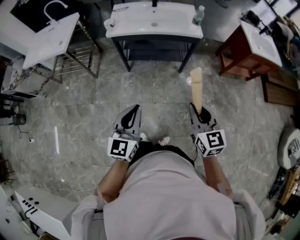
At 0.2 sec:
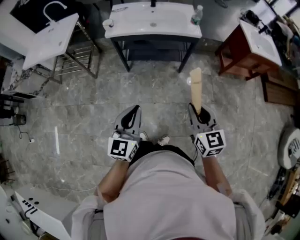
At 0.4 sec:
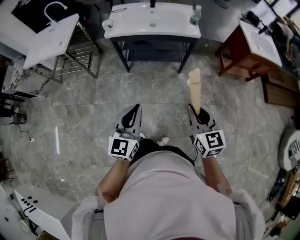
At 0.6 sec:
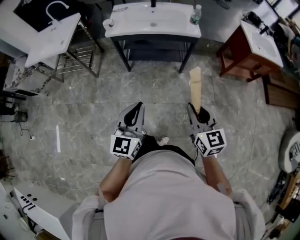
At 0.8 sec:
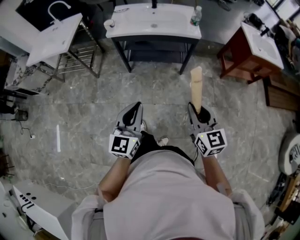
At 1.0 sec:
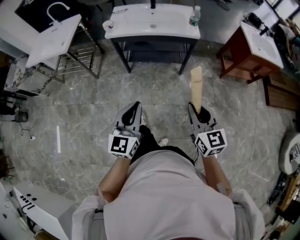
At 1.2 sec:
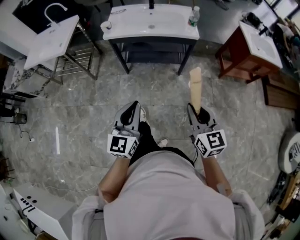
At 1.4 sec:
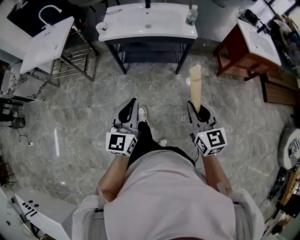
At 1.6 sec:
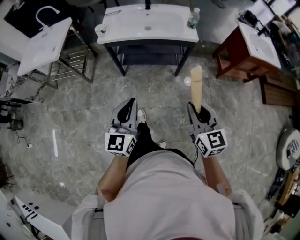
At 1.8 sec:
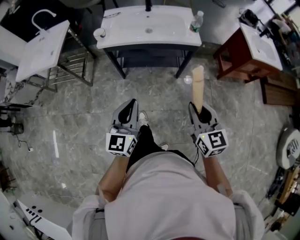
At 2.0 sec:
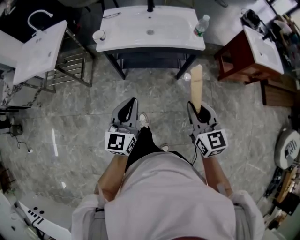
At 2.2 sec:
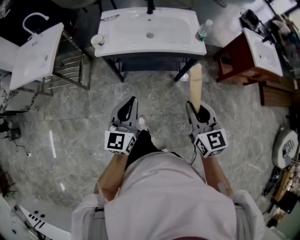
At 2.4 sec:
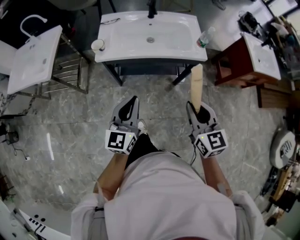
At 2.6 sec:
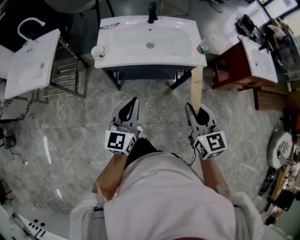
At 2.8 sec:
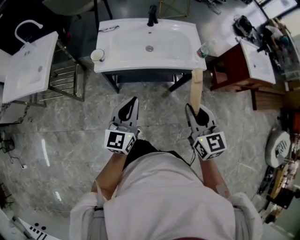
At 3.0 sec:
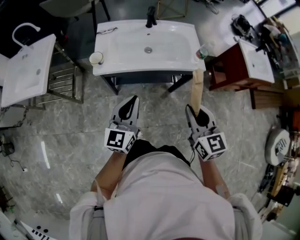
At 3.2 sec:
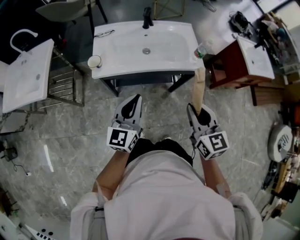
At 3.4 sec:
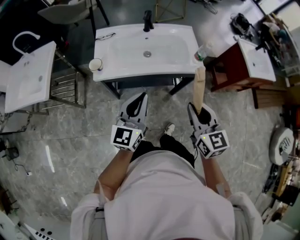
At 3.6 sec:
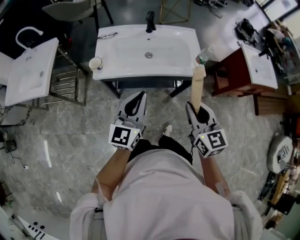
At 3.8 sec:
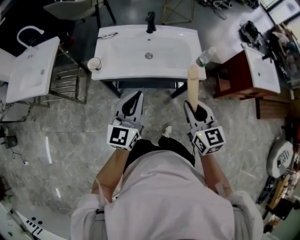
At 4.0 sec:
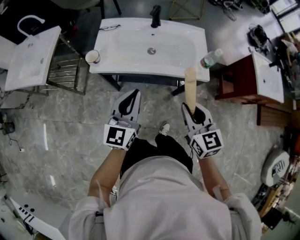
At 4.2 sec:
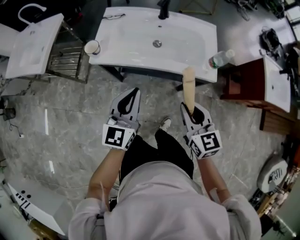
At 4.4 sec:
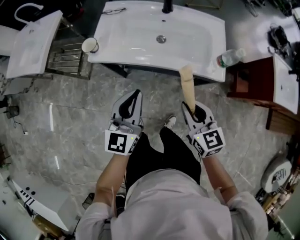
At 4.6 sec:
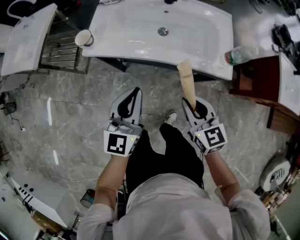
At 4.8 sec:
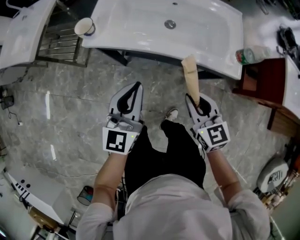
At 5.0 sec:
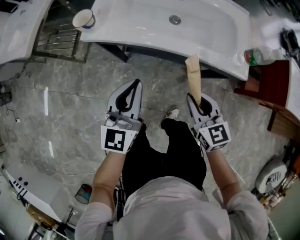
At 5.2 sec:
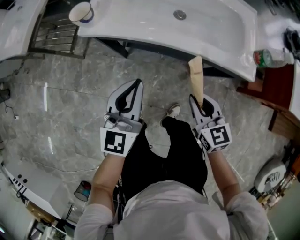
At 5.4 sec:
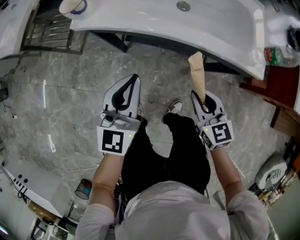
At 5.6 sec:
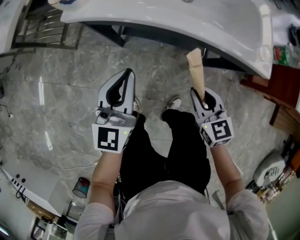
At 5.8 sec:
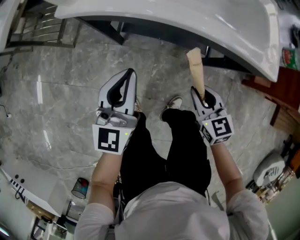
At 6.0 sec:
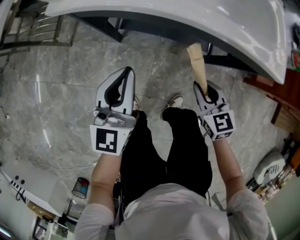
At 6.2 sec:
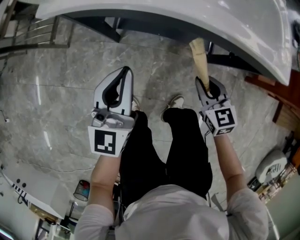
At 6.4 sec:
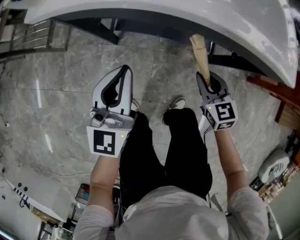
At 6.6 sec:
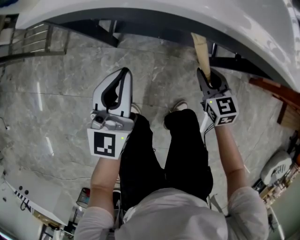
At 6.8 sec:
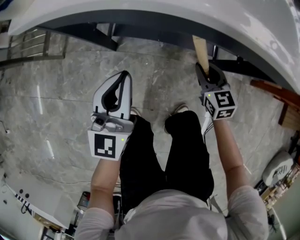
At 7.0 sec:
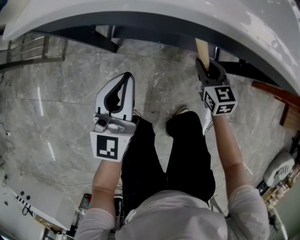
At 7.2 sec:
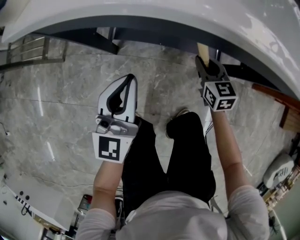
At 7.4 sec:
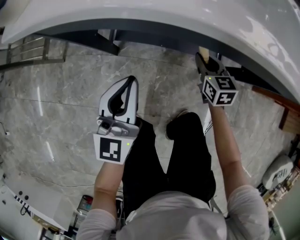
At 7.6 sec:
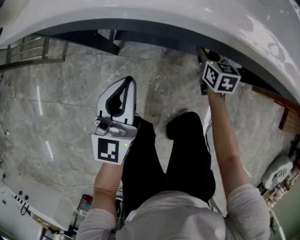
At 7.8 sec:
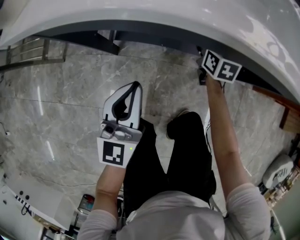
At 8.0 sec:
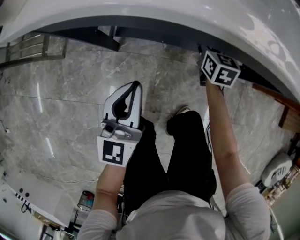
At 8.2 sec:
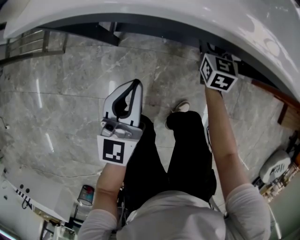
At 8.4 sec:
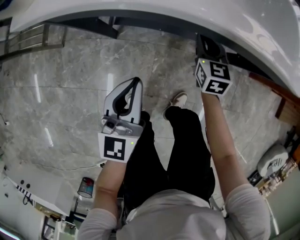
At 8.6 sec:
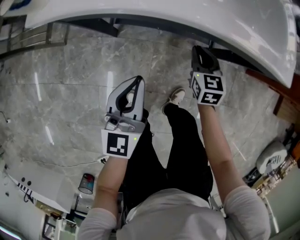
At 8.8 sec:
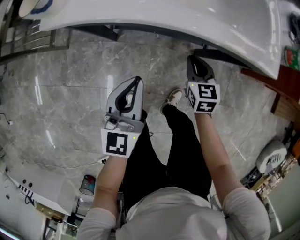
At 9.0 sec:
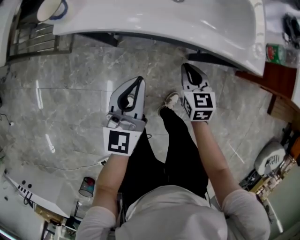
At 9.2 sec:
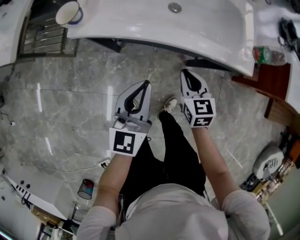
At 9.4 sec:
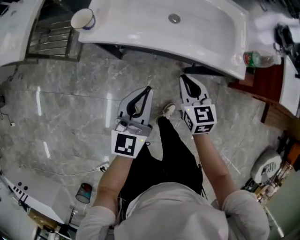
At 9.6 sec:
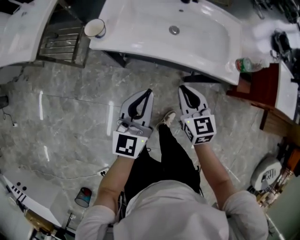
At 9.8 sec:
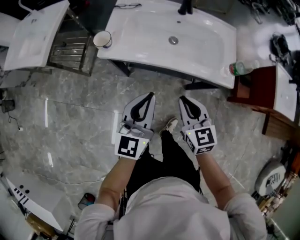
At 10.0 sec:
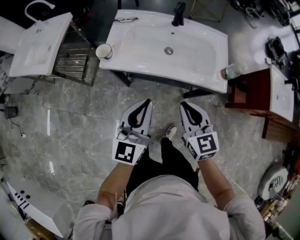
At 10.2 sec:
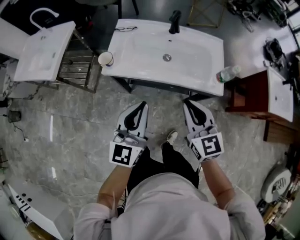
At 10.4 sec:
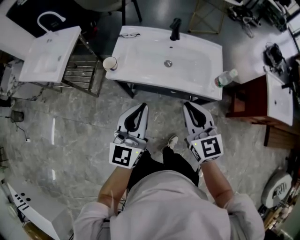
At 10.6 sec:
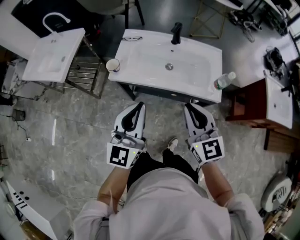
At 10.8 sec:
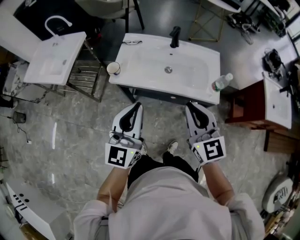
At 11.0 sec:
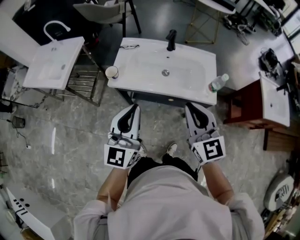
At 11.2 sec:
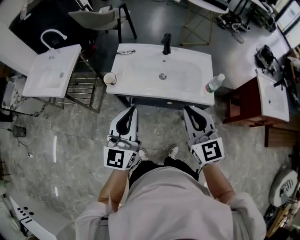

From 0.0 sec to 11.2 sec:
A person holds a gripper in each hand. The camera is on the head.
From 0.0 sec to 1.6 sec: Both grippers travel together forward, some 5 cm.
From 1.6 sec to 3.2 sec: Both grippers move forward, some 25 cm.
From 3.2 sec to 4.8 sec: The right gripper is displaced downward and forward by some 25 cm, and swivels about 30 degrees; the left gripper travels downward and forward by roughly 10 cm.
From 4.8 sec to 6.4 sec: The two grippers go approximately 25 cm downward.
From 6.4 sec to 8.0 sec: The left gripper is displaced downward by roughly 10 cm, while the right gripper goes roughly 20 cm forward and downward, changes its angle by roughly 20 degrees, and opens.
From 8.0 sec to 9.6 sec: The left gripper travels upward by about 30 cm. The right gripper goes approximately 40 cm upward and backward, and closes.
From 9.6 sec to 11.2 sec: Both grippers move upward, roughly 25 cm. The right gripper turns by about 30 degrees.

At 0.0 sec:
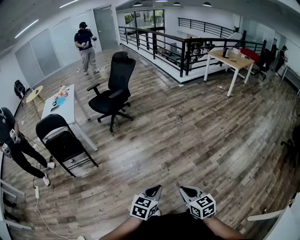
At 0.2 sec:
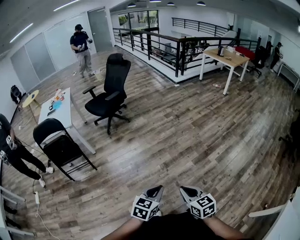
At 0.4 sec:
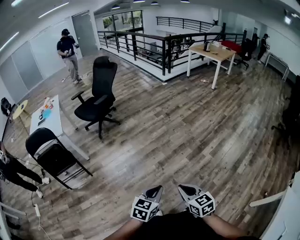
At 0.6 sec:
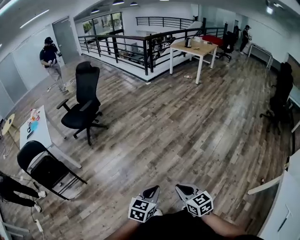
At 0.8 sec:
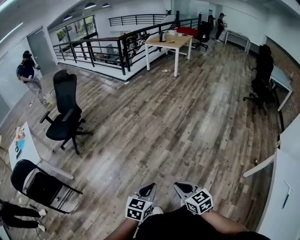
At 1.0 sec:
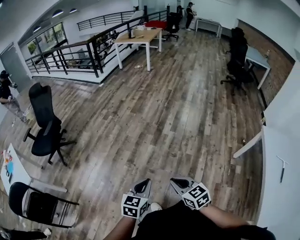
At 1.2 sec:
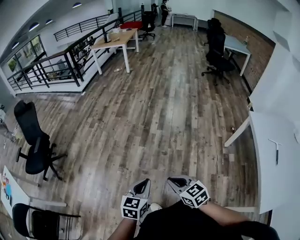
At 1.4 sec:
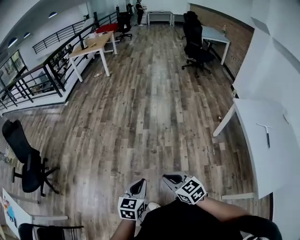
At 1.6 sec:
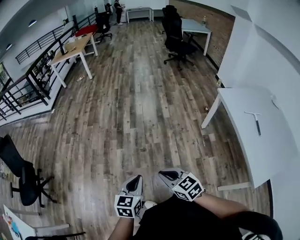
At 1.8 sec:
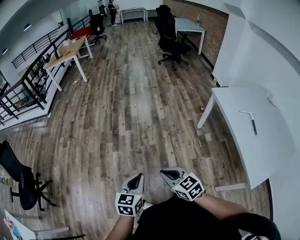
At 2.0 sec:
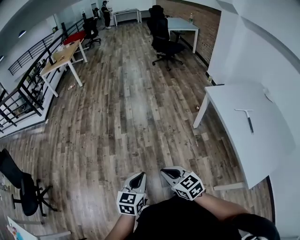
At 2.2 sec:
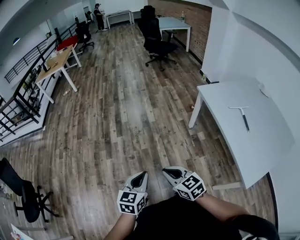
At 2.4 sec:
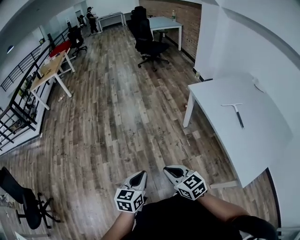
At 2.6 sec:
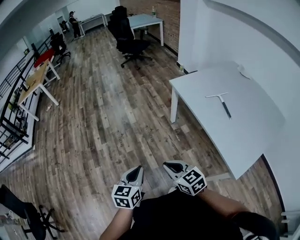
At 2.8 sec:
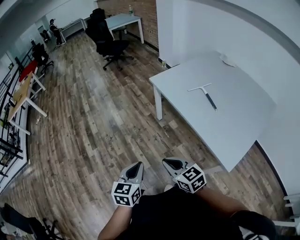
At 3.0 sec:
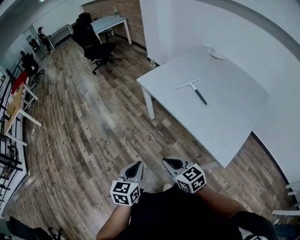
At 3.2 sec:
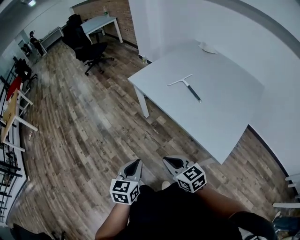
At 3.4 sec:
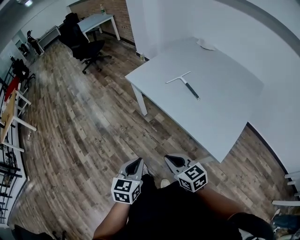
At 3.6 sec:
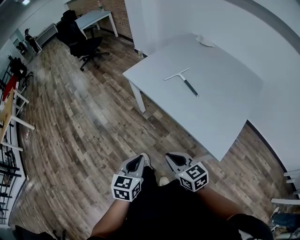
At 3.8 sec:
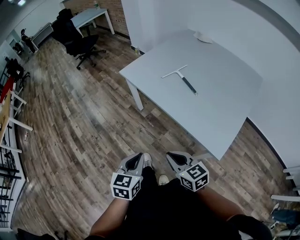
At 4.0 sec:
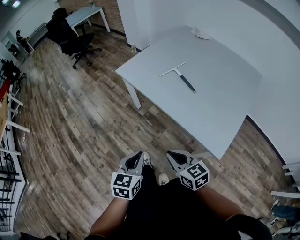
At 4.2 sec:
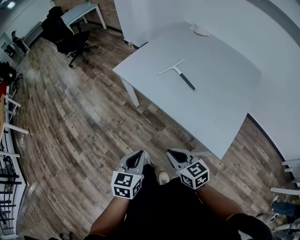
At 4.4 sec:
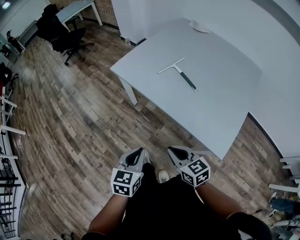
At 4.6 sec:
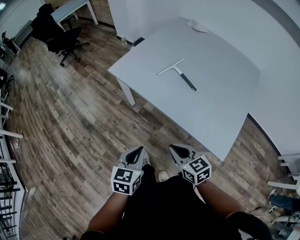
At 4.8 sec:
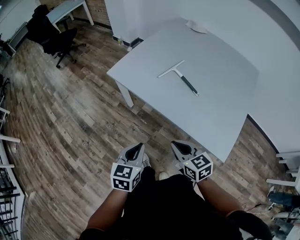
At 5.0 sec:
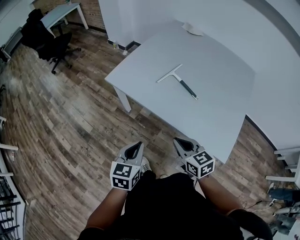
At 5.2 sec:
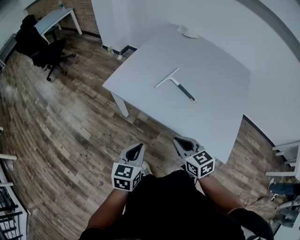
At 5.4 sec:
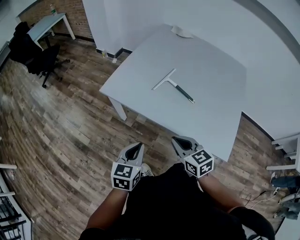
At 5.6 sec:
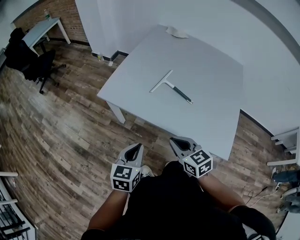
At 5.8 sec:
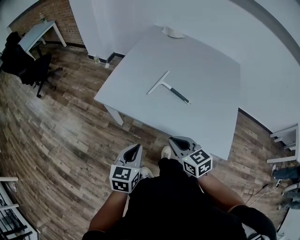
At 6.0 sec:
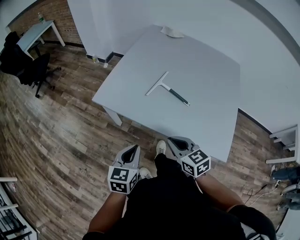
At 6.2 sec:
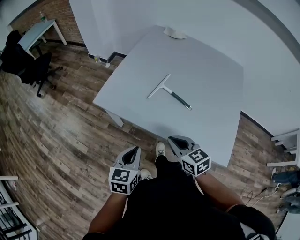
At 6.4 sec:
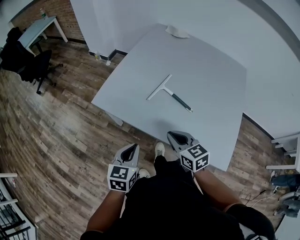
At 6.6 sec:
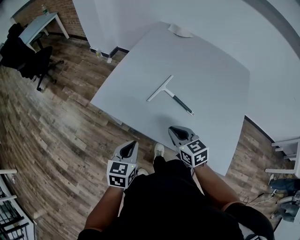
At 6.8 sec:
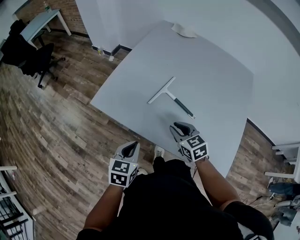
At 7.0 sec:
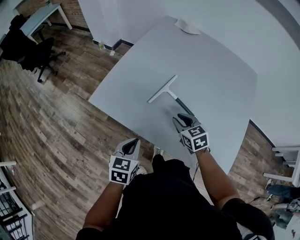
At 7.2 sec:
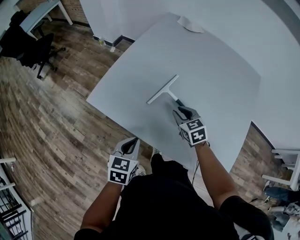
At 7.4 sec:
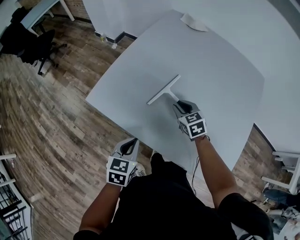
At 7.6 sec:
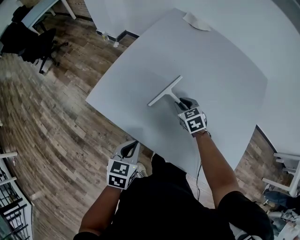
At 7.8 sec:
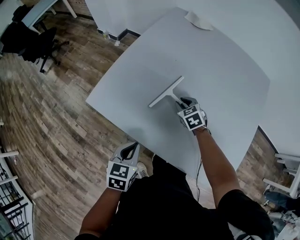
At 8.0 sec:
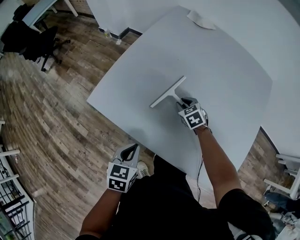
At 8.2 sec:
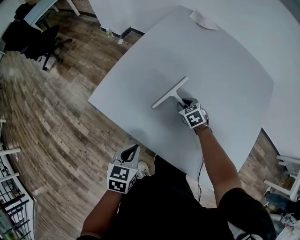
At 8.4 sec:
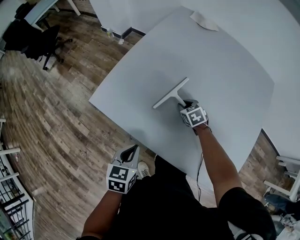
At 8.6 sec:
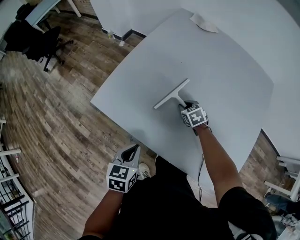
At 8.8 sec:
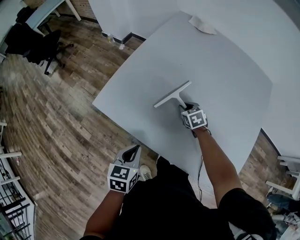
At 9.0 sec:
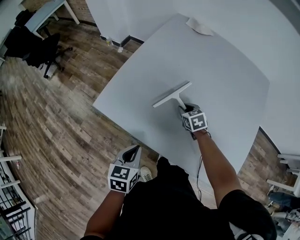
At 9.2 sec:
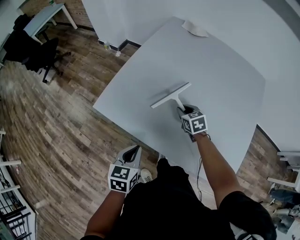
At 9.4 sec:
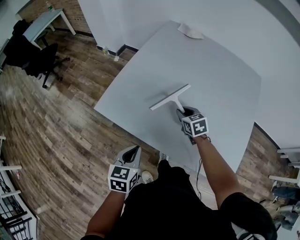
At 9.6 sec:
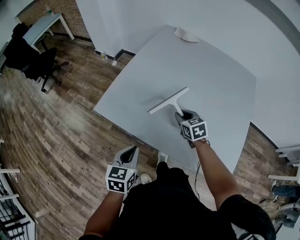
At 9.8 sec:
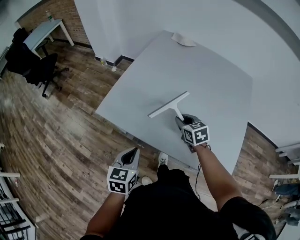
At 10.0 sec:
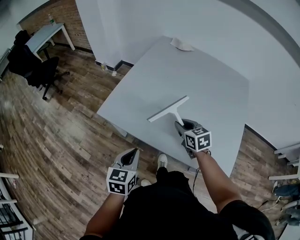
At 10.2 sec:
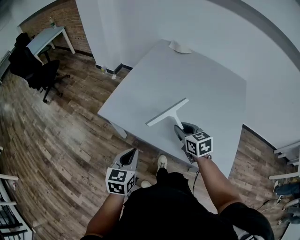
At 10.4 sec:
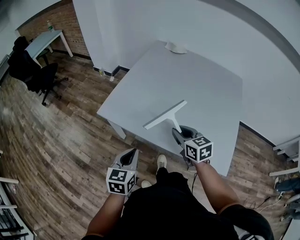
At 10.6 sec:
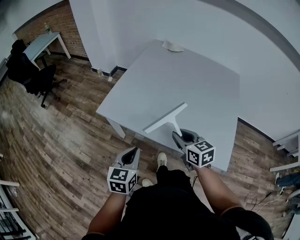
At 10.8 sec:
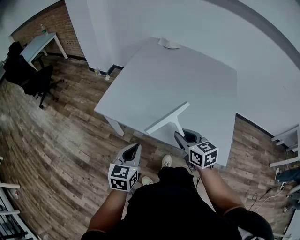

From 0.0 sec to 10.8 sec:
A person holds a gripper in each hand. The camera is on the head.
From 0.0 sec to 1.6 sec: The left gripper shifts by some 20 cm, and rotates about 50 degrees, while the right gripper shifts by roughly 20 cm, and rotates roughly 50 degrees.
From 1.6 sec to 3.0 sec: Both grippers are carried roughly 40 cm. The right gripper swivels some 40 degrees. Meanwhile the left gripper swivels about 30 degrees.
From 3.0 sec to 4.6 sec: The left gripper travels forward and to the right by about 15 cm. The right gripper is displaced forward, to the right and downward by roughly 15 cm, and changes its angle by some 20 degrees.
From 4.6 sec to 6.2 sec: The two grippers go approximately 15 cm forward.
From 6.2 sec to 7.8 sec: The right gripper is displaced forward and downward by some 35 cm, changes its angle by approximately 30 degrees, and opens; the left gripper travels forward and downward by about 15 cm.
From 7.8 sec to 9.2 sec: The grippers make only small movements.
From 9.2 sec to 10.8 sec: The left gripper shifts roughly 15 cm backward and upward; the right gripper moves backward and upward, some 35 cm, and rotates approximately 20 degrees.

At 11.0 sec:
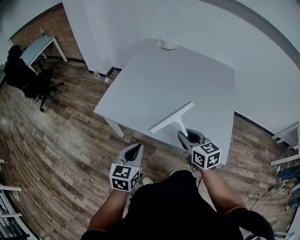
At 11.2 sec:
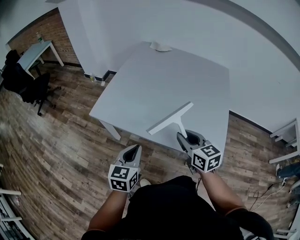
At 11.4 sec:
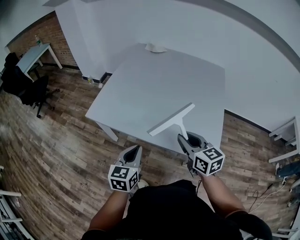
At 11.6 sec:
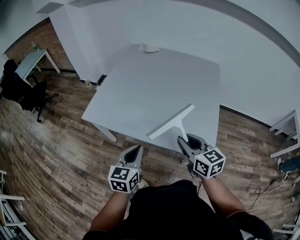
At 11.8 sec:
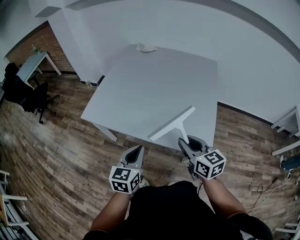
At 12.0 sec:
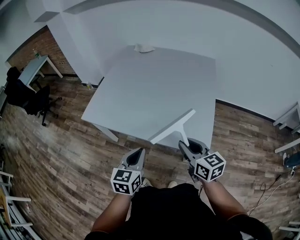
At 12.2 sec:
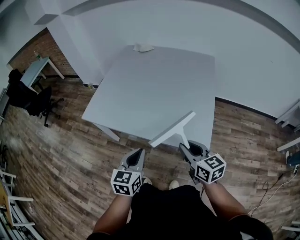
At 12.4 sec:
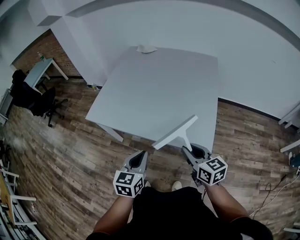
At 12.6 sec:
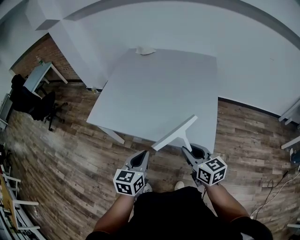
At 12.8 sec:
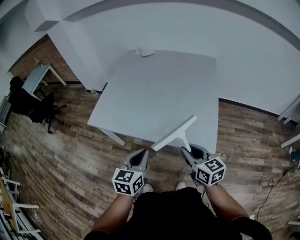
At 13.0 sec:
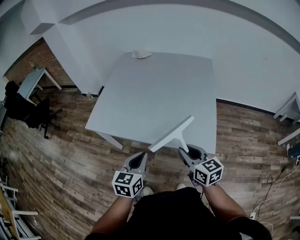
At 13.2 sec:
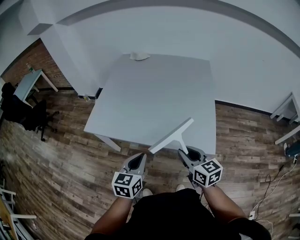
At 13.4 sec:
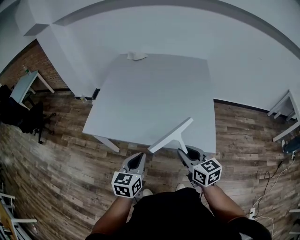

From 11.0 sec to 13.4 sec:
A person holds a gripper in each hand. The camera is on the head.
From 11.0 sec to 12.2 sec: The grippers both shift to the right and backward by some 20 cm.
From 12.2 sec to 13.4 sec: The two grippers go about 10 cm to the left.
